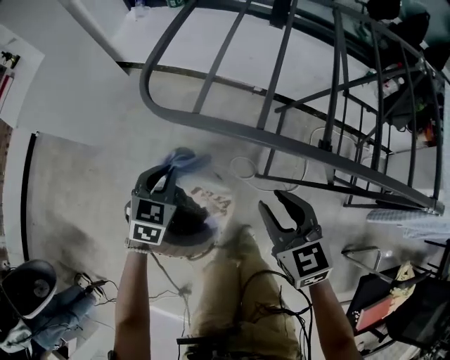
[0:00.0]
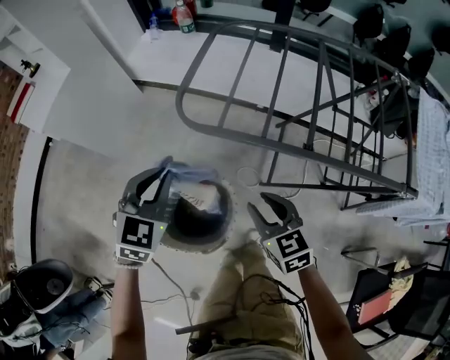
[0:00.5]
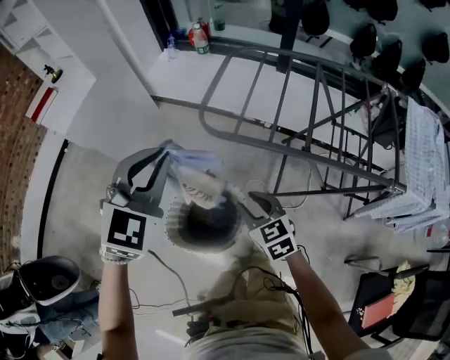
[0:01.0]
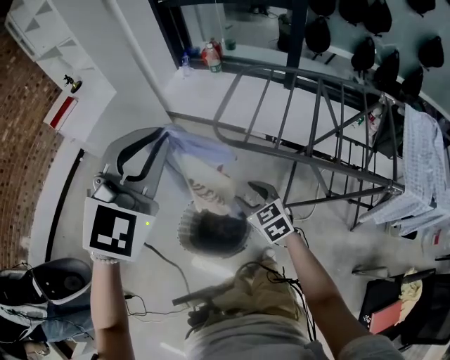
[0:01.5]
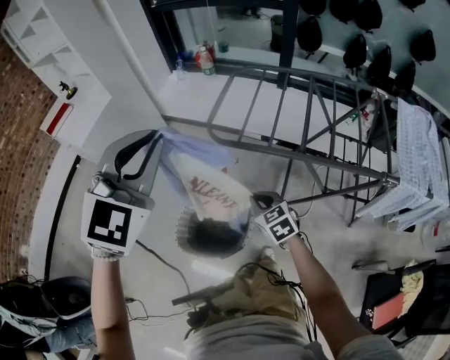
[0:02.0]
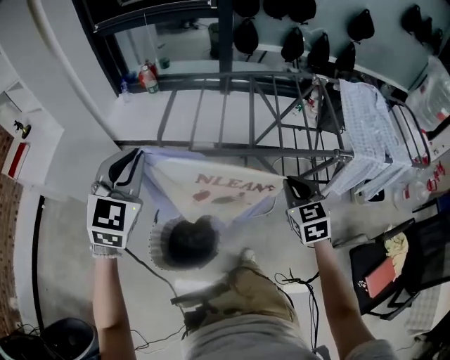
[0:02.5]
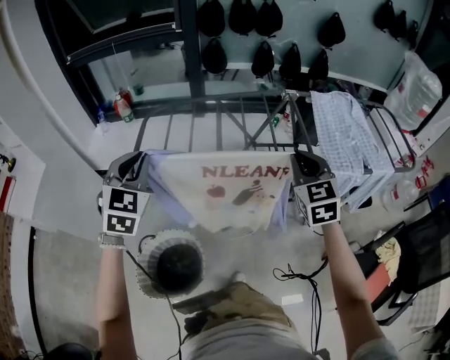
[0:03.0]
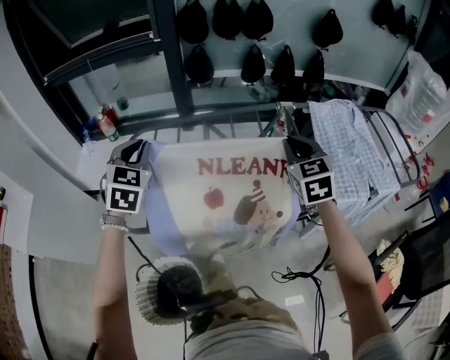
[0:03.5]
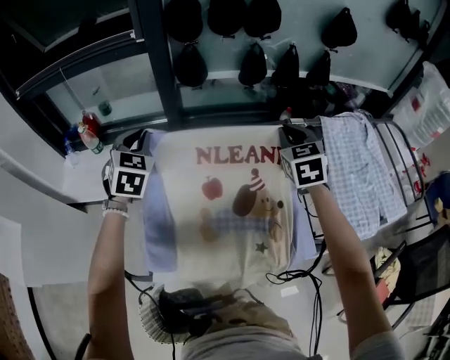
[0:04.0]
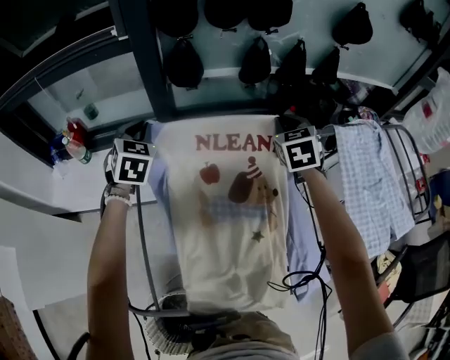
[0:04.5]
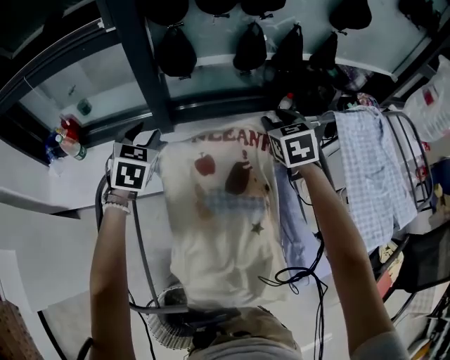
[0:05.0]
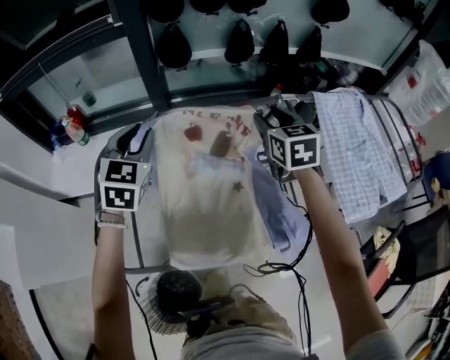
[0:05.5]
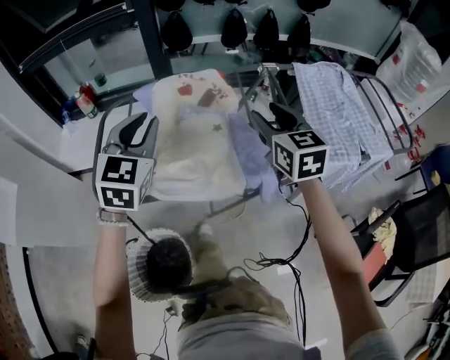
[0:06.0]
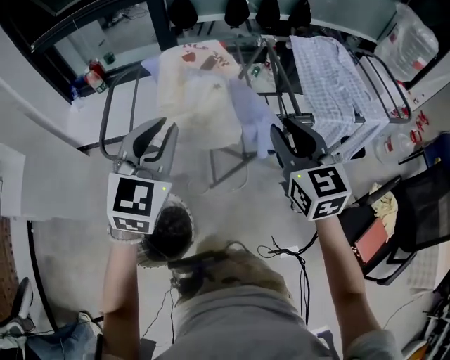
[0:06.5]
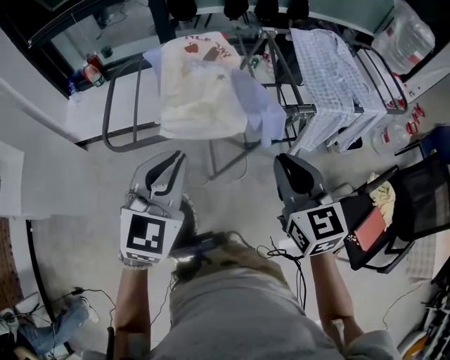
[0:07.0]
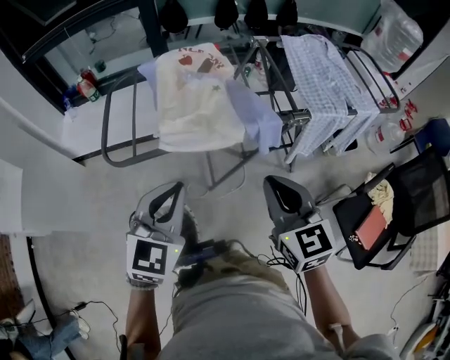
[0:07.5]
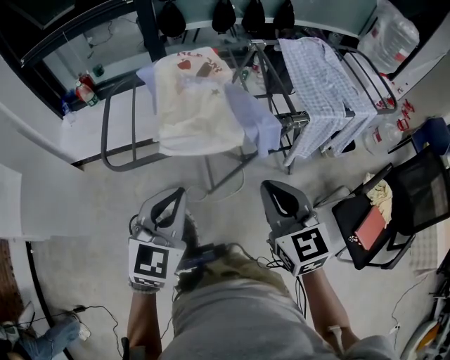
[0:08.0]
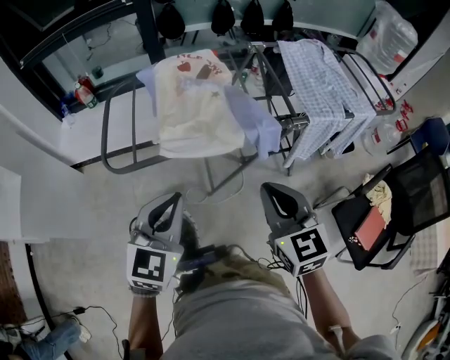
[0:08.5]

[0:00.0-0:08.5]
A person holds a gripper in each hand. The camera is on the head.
0.0 to 2.0 s: The left gripper heads upward, covering approximately 50 cm, and swivels approximately 40 degrees. The right gripper travels to the left and upward by approximately 15 cm, and closes its fingers.
2.0 to 4.0 s: The two grippers travel together, approximately 60 cm. The right gripper turns by roughly 50 degrees.
4.0 to 6.5 s: Both grippers are carried backward, roughly 40 cm. The left gripper rotates roughly 20 degrees, and opens and closes again; the right gripper swivels approximately 20 degrees, and opens.
6.5 to 8.5 s: The right gripper shifts approximately 15 cm backward and to the left, and closes. The left gripper is displaced backward and downward by about 15 cm.

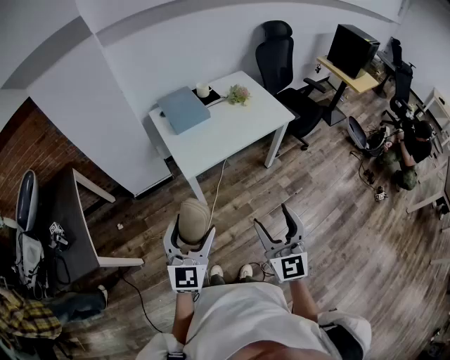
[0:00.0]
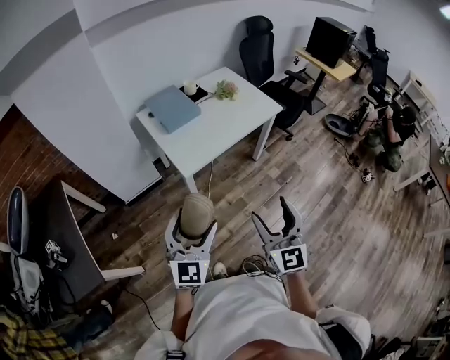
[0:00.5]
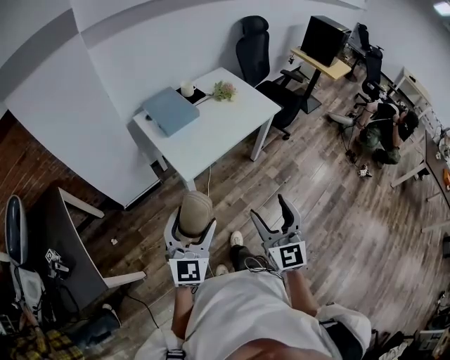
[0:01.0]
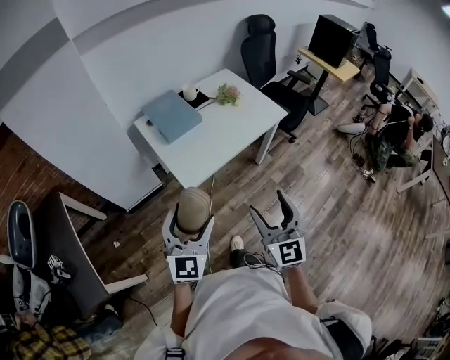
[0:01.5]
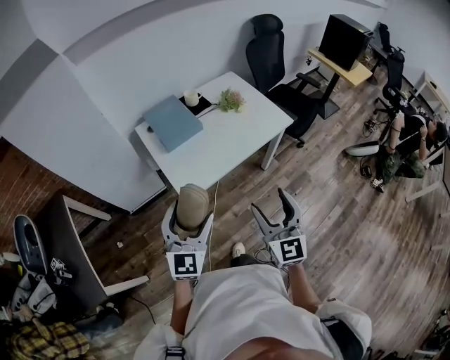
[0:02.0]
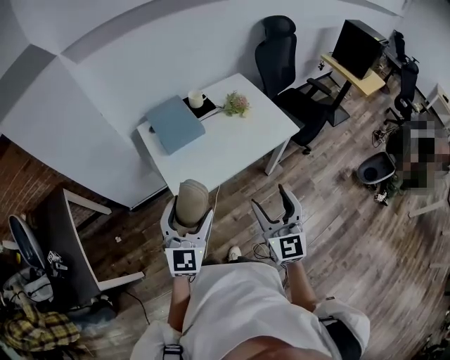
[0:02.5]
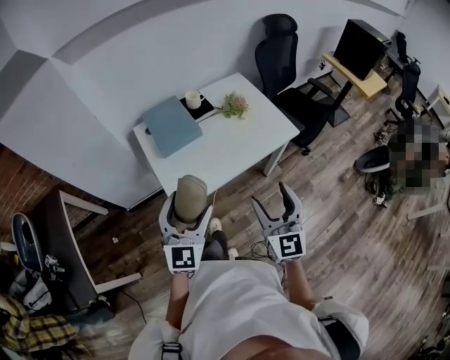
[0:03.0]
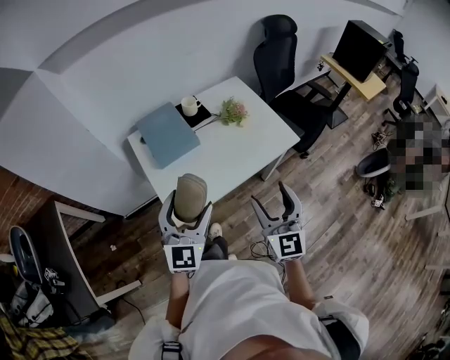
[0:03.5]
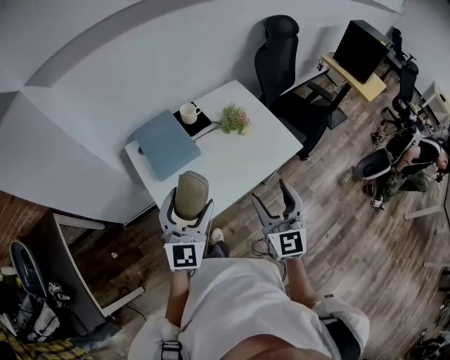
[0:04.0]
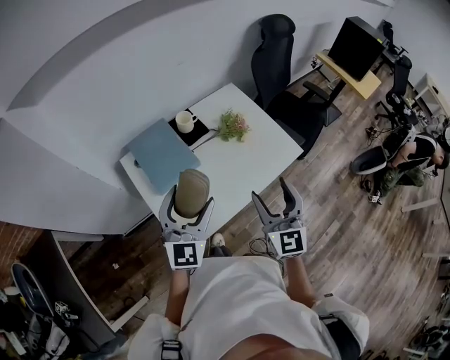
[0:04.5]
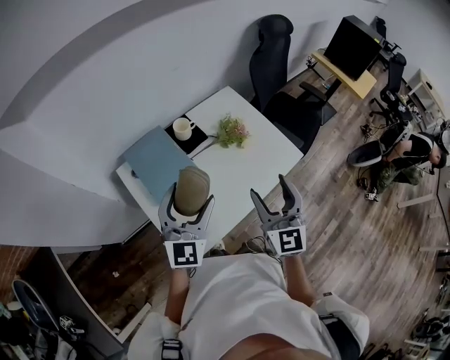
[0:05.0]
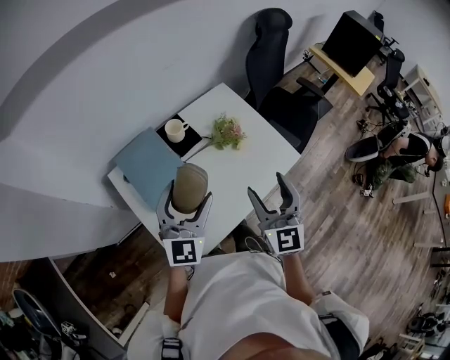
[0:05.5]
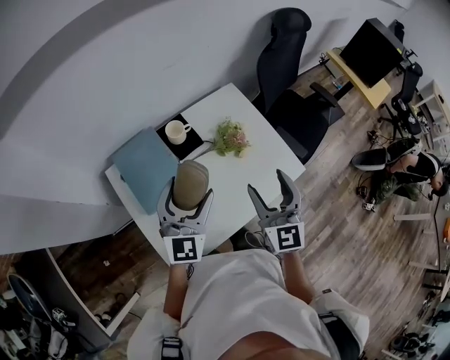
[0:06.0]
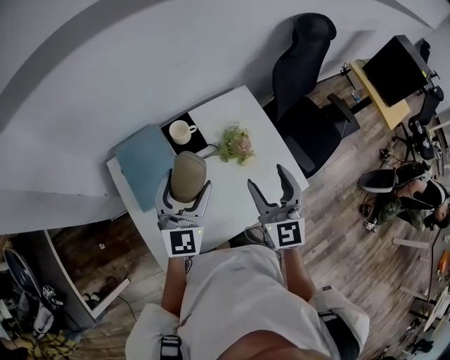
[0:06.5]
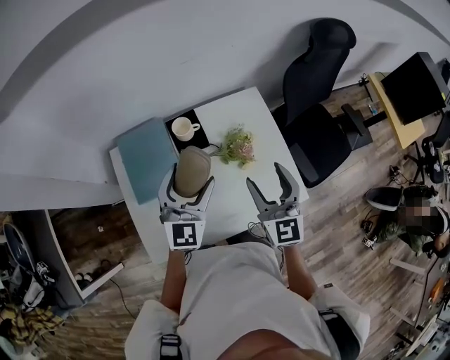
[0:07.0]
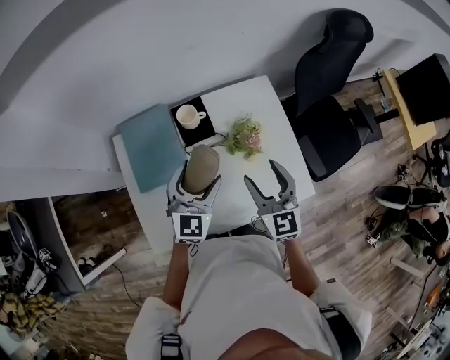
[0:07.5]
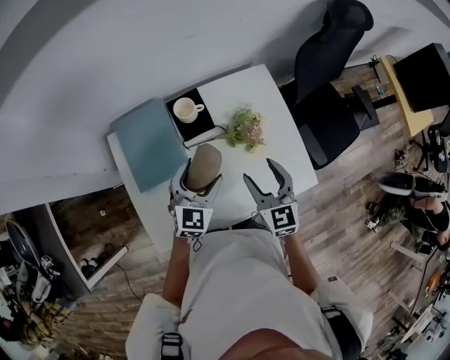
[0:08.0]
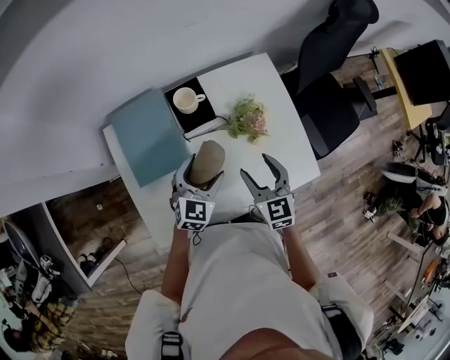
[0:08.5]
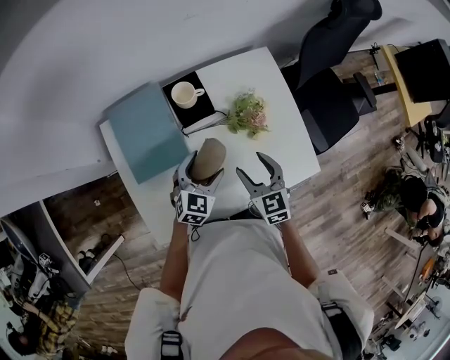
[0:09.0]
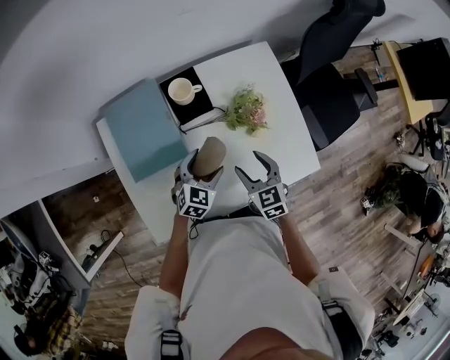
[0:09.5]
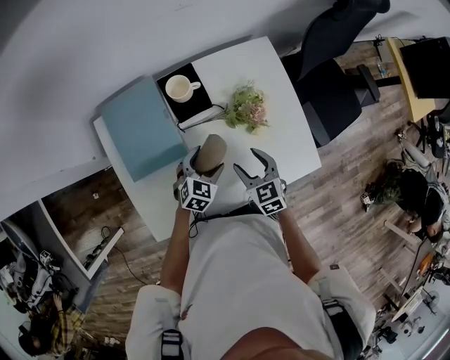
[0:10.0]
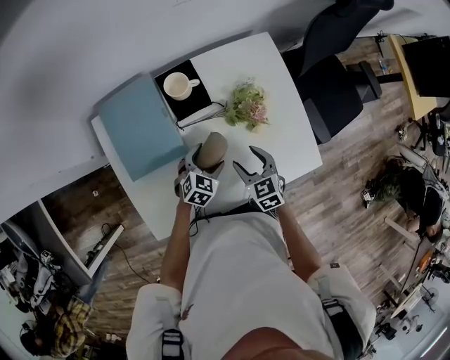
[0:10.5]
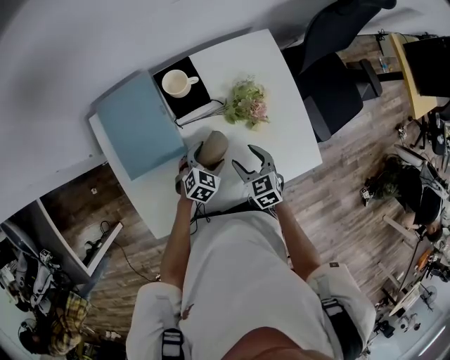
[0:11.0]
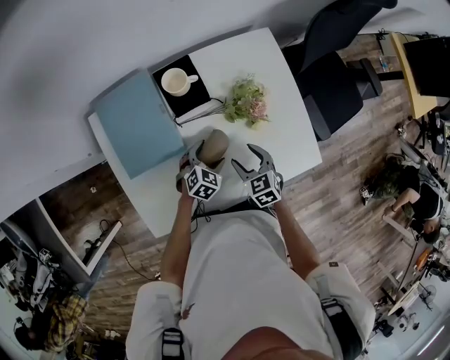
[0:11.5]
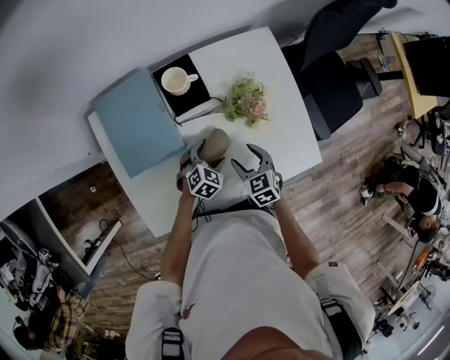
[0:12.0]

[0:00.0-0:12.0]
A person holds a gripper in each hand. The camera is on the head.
0.0 to 2.0 s: The two grippers go some 15 cm forward.
2.0 to 4.0 s: The grippers both shift forward by approximately 25 cm.
4.0 to 6.0 s: The two grippers go about 25 cm forward.
6.0 to 8.0 s: Both grippers move downward and forward, some 15 cm. The right gripper changes its angle by some 30 degrees, while the left gripper turns by some 20 degrees.
8.0 to 10.0 s: Both grippers move downward, approximately 15 cm. The right gripper changes its angle by about 20 degrees. Meanwhile the left gripper rotates approximately 20 degrees.
10.0 to 12.0 s: Both grippers move downward, approximately 5 cm.

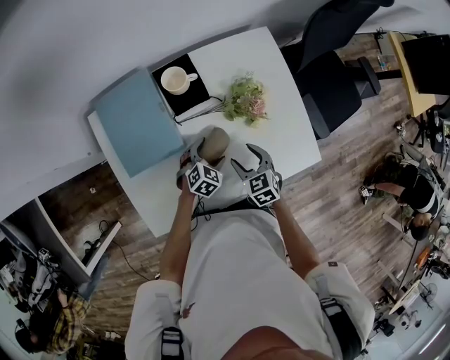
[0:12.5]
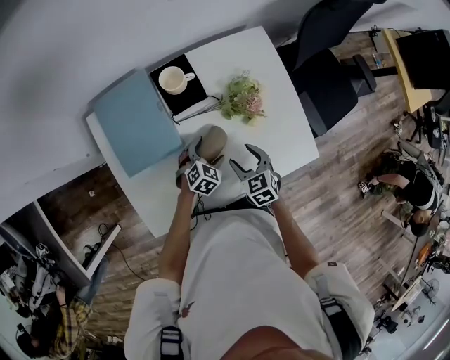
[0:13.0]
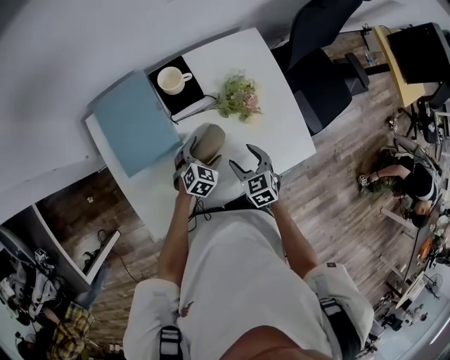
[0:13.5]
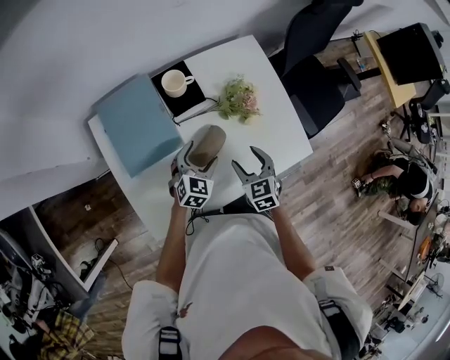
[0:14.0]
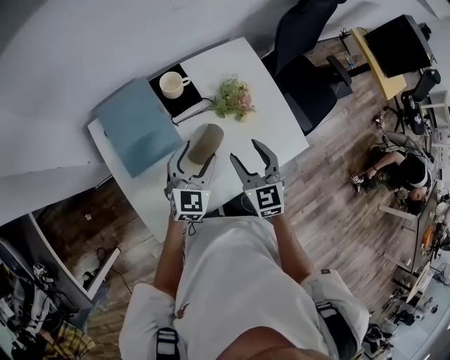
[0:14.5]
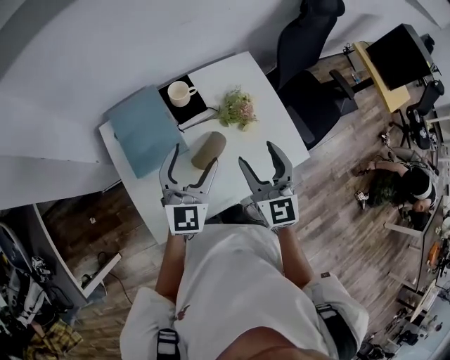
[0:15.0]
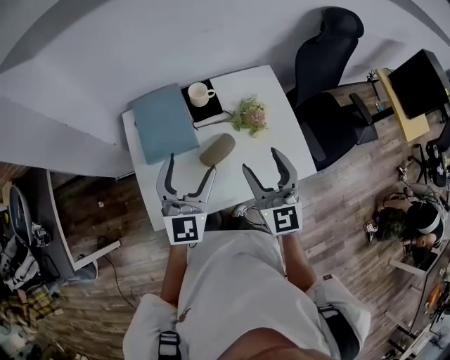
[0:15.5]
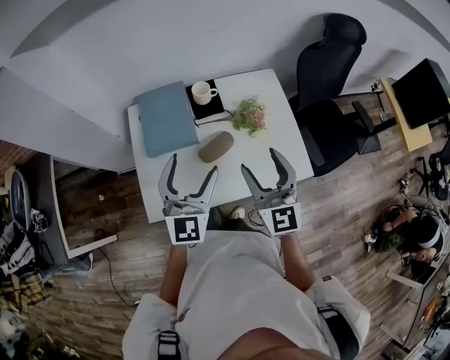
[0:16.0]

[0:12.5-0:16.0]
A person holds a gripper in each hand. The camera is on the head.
12.5 to 14.5 s: Both grippers travel together upward, roughly 20 cm. The right gripper changes its angle by about 30 degrees, while the left gripper tips its fingers upward by some 30 degrees.
14.5 to 16.0 s: The grippers both shift upward and backward by approximately 20 cm. The left gripper changes its angle by about 30 degrees; the right gripper turns by approximately 20 degrees.

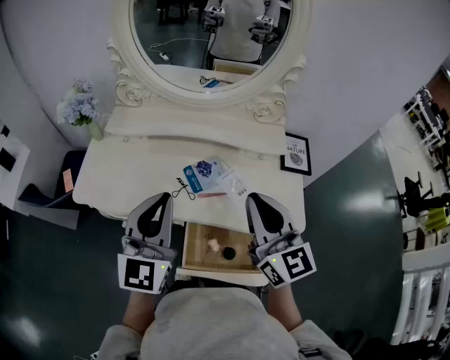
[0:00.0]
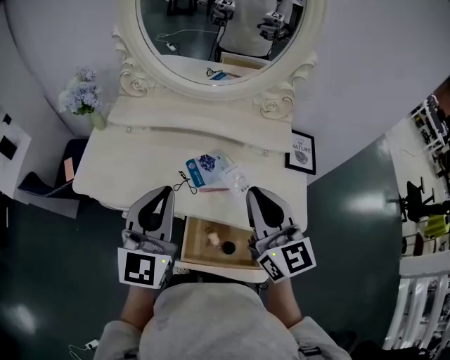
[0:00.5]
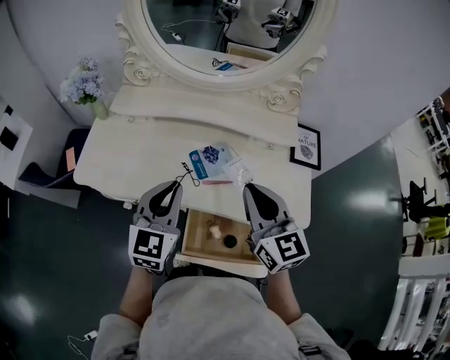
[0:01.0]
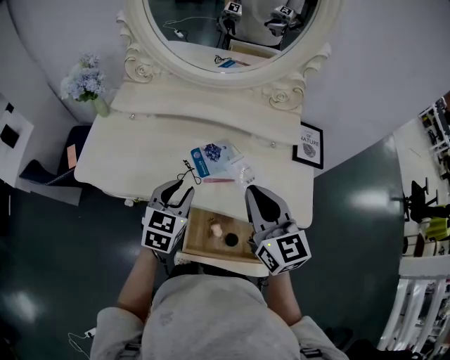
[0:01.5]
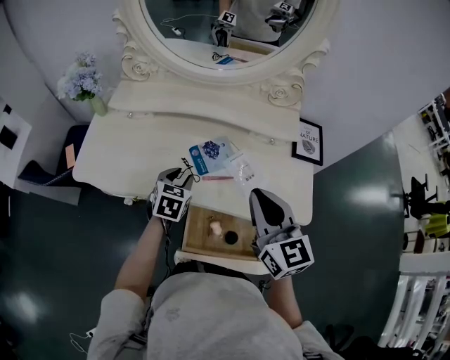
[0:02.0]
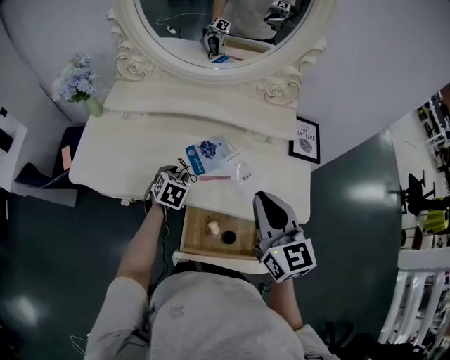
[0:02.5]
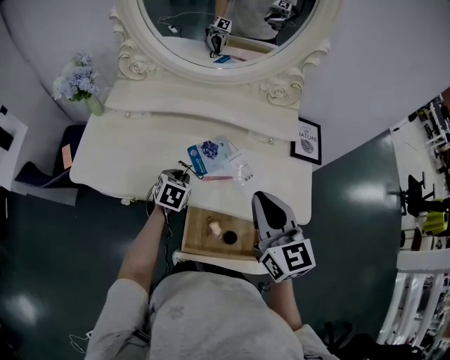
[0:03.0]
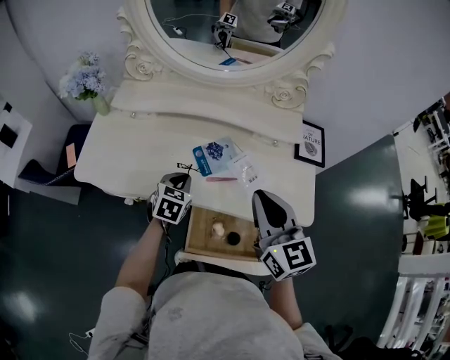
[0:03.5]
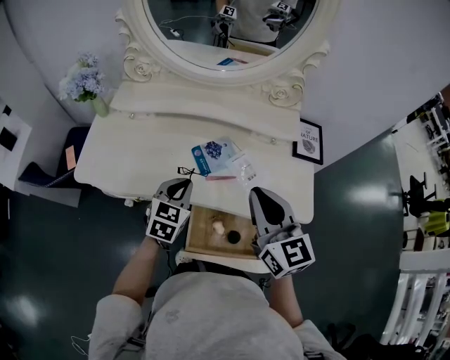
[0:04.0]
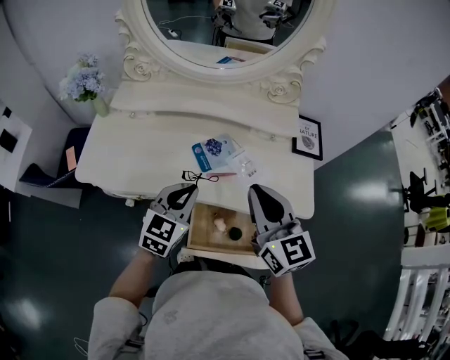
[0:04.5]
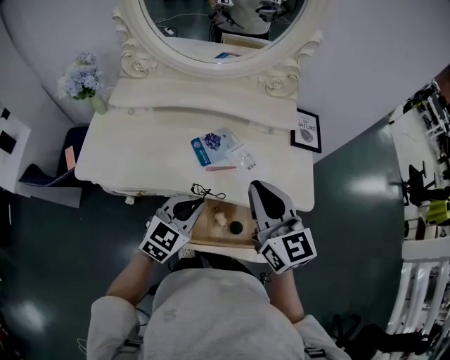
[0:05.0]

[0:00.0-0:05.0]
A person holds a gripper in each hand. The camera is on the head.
0.0 to 2.5 s: The left gripper travels downward and forward by about 30 cm, angles its fingers downward, by roughly 50 degrees, and opens up, while the right gripper is displaced downward by about 5 cm.
2.5 to 5.0 s: The left gripper goes roughly 20 cm backward and upward, rotates approximately 40 degrees, and closes.
